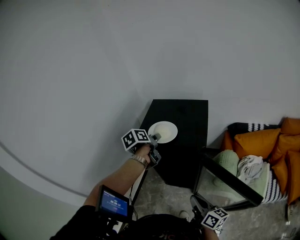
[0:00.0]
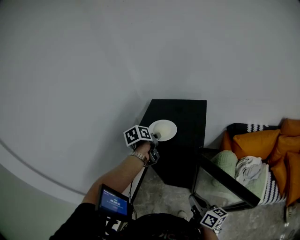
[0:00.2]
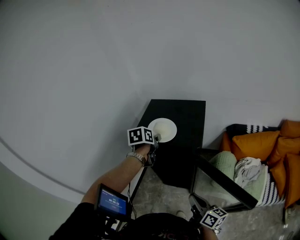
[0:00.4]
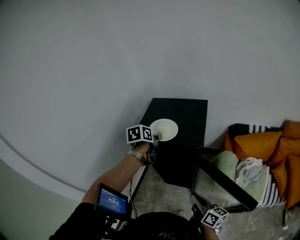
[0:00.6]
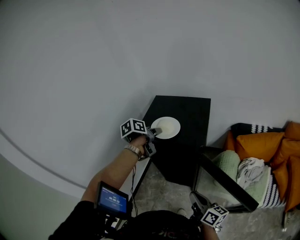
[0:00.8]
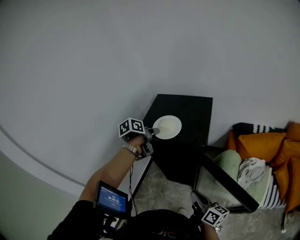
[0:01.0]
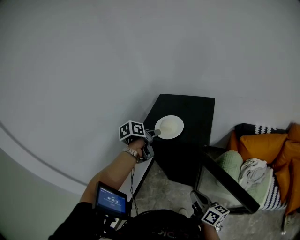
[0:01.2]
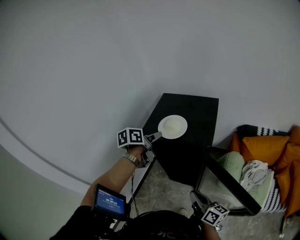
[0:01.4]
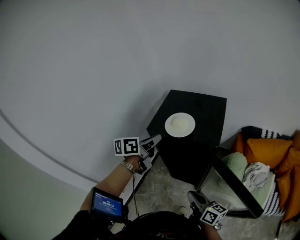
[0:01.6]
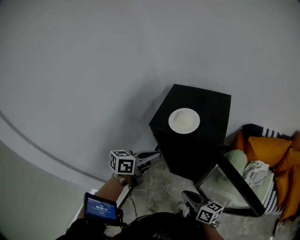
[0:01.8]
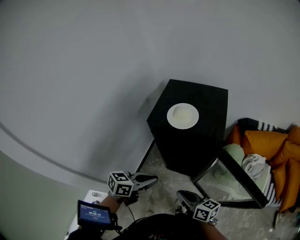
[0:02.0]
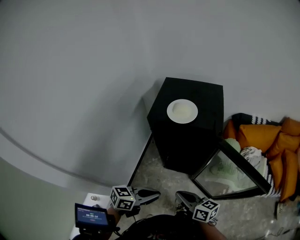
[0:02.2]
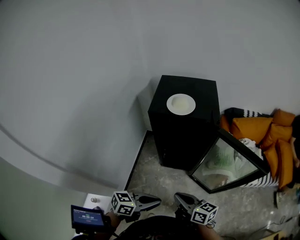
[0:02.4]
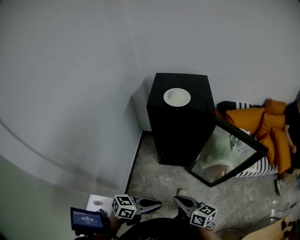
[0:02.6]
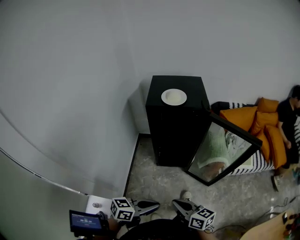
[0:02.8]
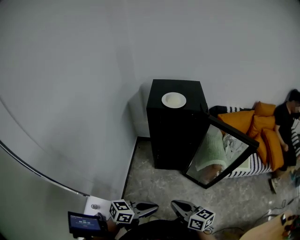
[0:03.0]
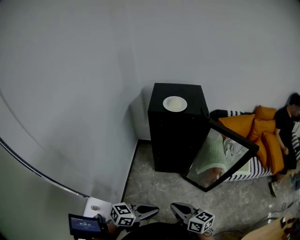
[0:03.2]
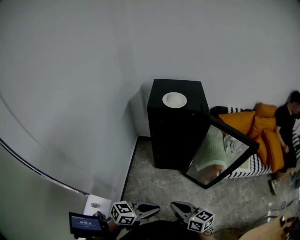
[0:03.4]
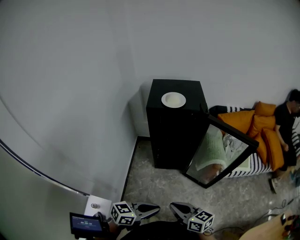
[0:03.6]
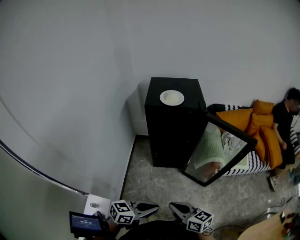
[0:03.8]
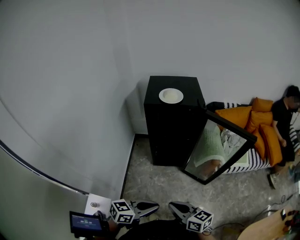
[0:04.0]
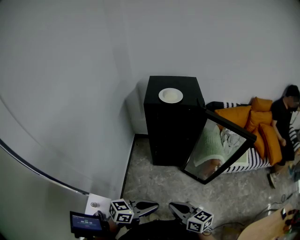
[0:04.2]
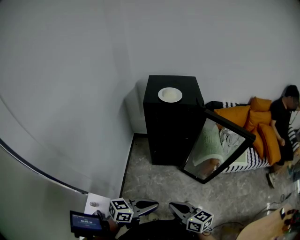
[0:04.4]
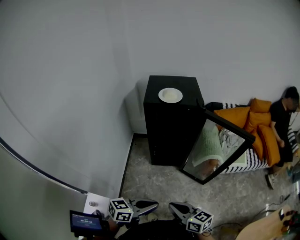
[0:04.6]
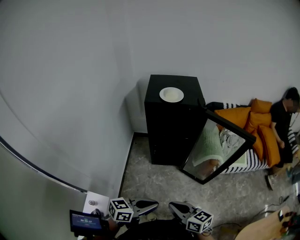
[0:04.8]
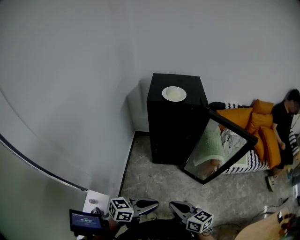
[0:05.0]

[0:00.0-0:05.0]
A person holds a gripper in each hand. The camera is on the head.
0:00.0 to 0:01.6: The left gripper shifts roughly 5 cm backward, changes its angle by some 30 degrees, and closes.
0:01.6 to 0:03.4: The right gripper shifts by approximately 30 cm, and swivels some 20 degrees, while the left gripper changes place by approximately 50 cm, and turns by roughly 50 degrees.
0:03.4 to 0:05.0: The grippers make only small movements.

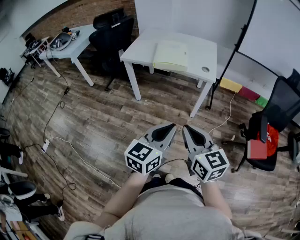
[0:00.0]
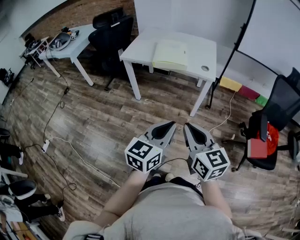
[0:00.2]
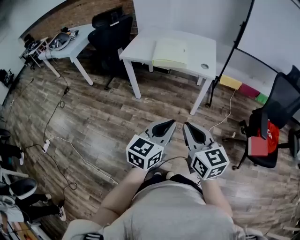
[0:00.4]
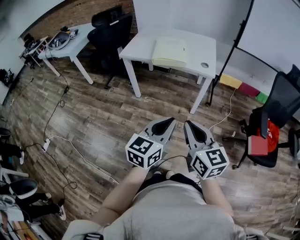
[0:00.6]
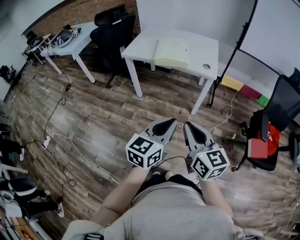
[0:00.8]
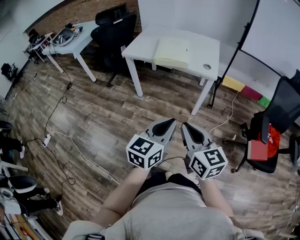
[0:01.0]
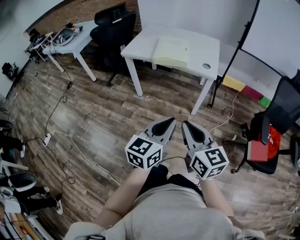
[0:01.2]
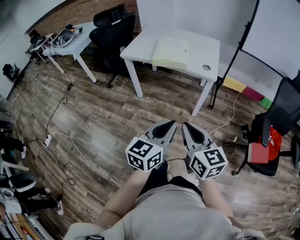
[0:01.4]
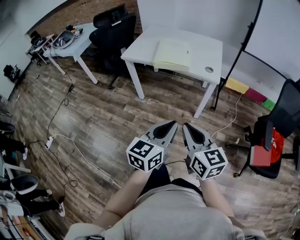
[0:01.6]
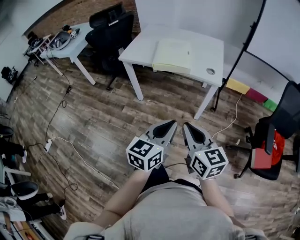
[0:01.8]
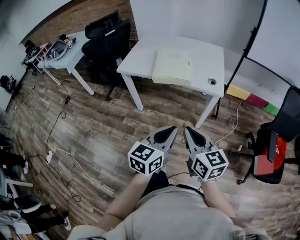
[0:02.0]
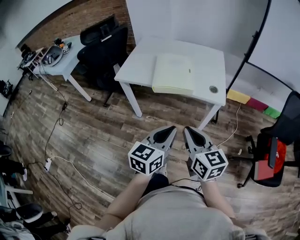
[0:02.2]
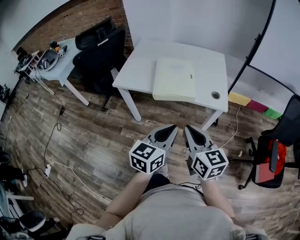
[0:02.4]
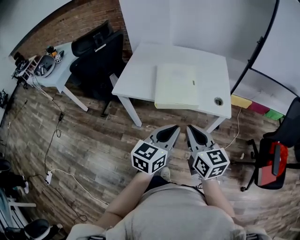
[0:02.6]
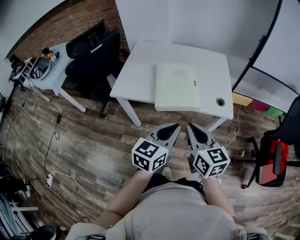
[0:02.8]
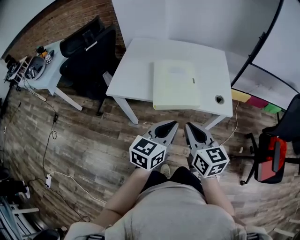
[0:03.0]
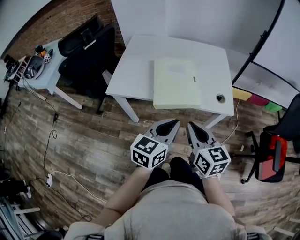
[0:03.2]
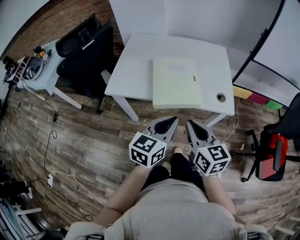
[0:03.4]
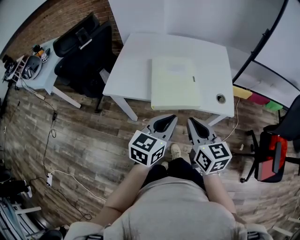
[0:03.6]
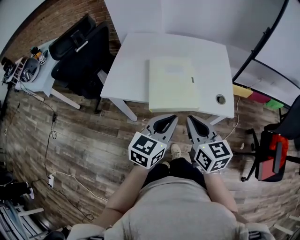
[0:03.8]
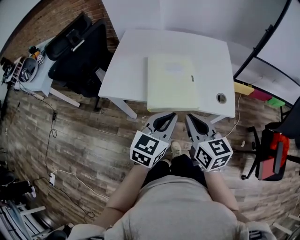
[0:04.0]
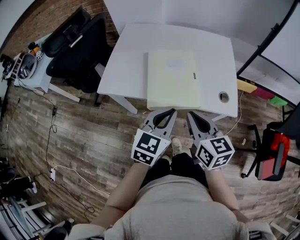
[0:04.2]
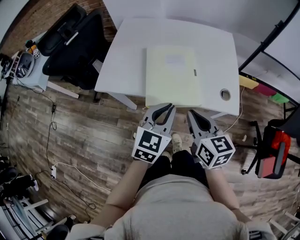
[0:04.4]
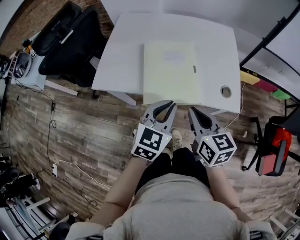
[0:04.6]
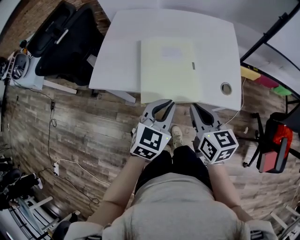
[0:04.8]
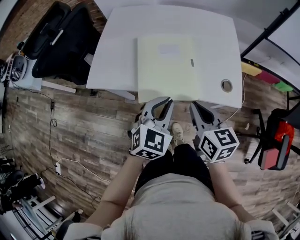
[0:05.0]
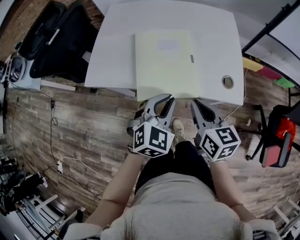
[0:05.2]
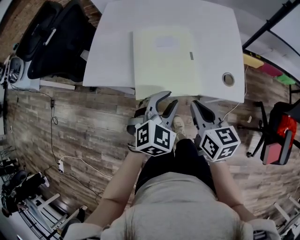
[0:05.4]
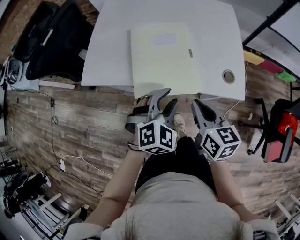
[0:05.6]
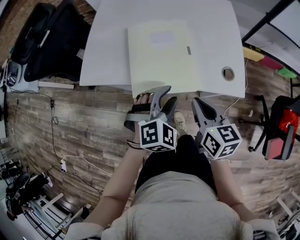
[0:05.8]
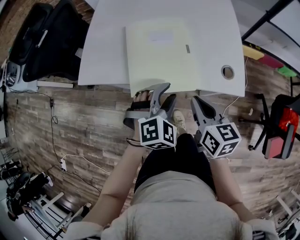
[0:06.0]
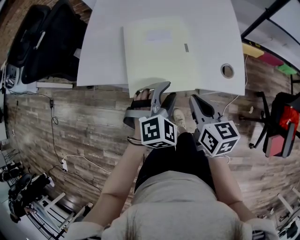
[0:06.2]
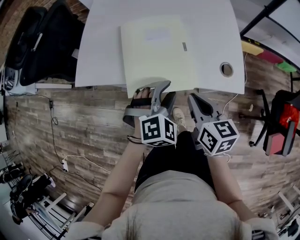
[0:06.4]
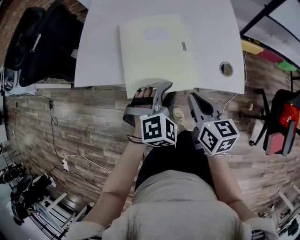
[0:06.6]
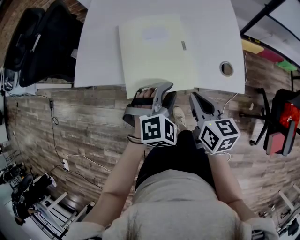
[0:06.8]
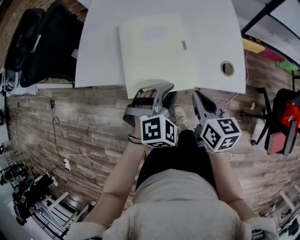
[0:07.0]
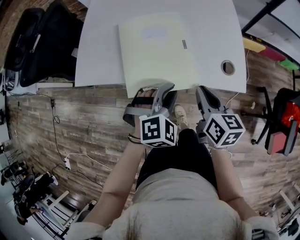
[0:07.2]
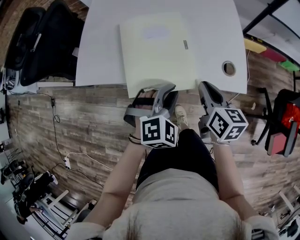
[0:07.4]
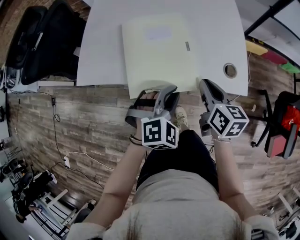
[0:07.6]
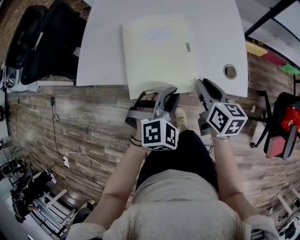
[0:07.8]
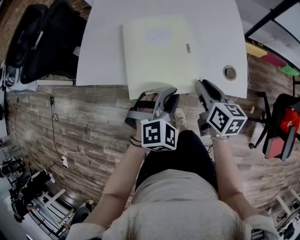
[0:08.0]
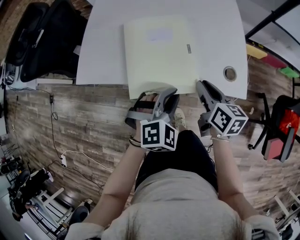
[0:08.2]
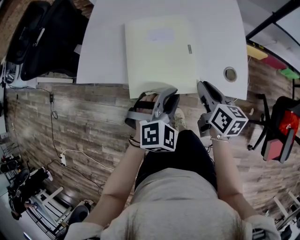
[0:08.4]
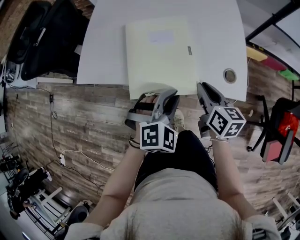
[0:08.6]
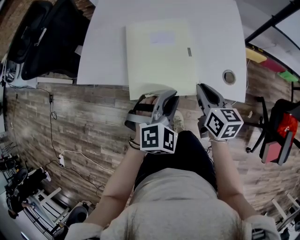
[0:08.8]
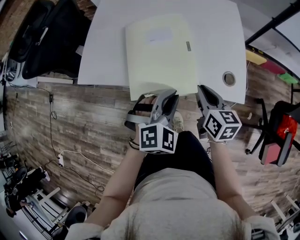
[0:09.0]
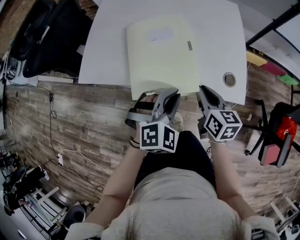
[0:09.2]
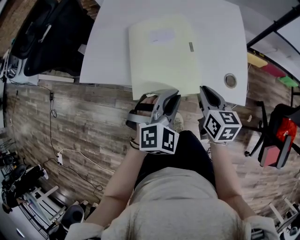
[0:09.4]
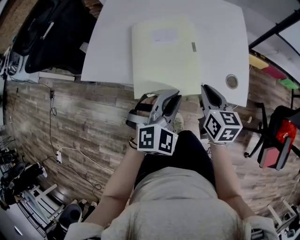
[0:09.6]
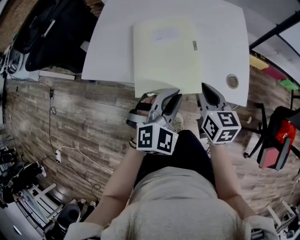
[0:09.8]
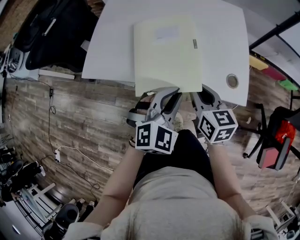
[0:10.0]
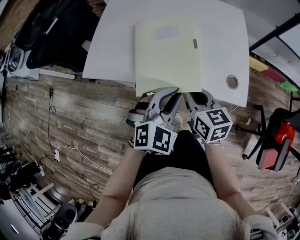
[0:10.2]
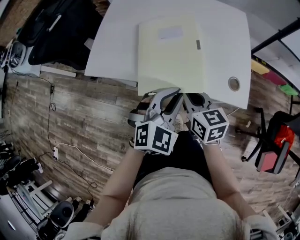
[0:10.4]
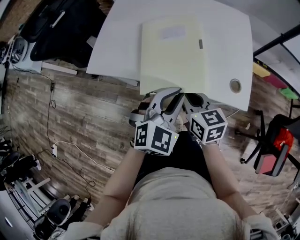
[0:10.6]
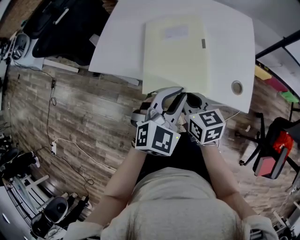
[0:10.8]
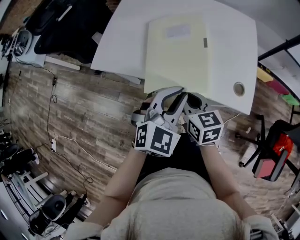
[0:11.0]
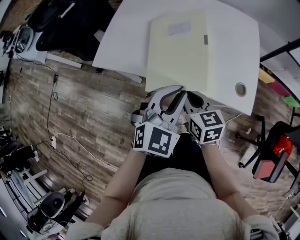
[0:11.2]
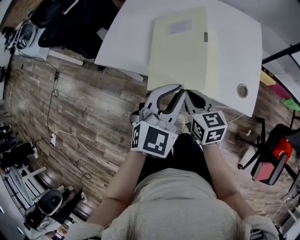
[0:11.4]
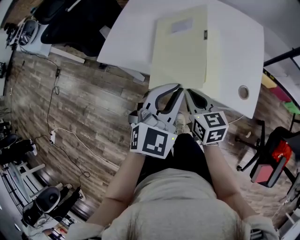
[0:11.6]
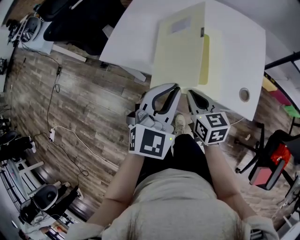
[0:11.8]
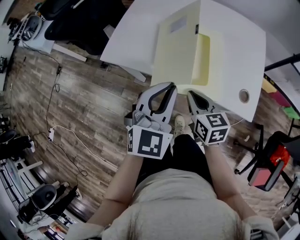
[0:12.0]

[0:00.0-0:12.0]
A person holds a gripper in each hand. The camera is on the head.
0:00.0 to 0:01.6: The two grippers go roughly 5 cm forward.
0:01.6 to 0:03.0: Both grippers travel together forward, approximately 30 cm.
0:03.0 to 0:04.4: Both grippers move forward, roughly 10 cm.
0:04.4 to 0:06.0: Both grippers move downward, approximately 10 cm. The left gripper twists about 40 degrees clockwise, seen from behind, and opens up.
0:06.0 to 0:07.6: The left gripper closes up, while the right gripper travels forward by about 5 cm.
0:07.6 to 0:09.0: The grippers stay close to where they were, moving slightly.
0:09.0 to 0:10.4: The right gripper heads to the left, covering about 10 cm.
0:10.4 to 0:12.0: The left gripper heads to the left and upward, covering some 10 cm, and rotates roughly 20 degrees.

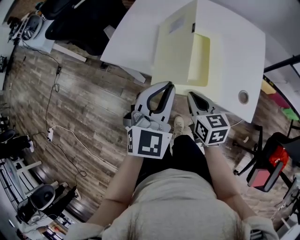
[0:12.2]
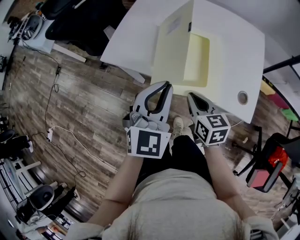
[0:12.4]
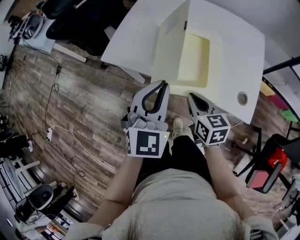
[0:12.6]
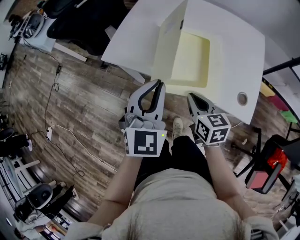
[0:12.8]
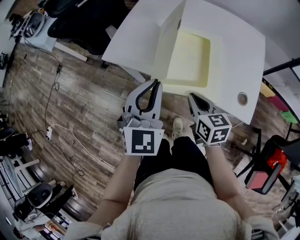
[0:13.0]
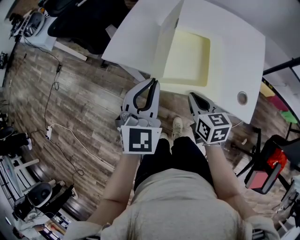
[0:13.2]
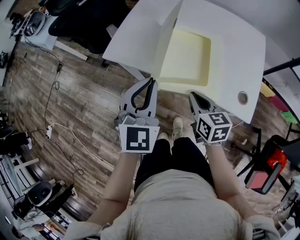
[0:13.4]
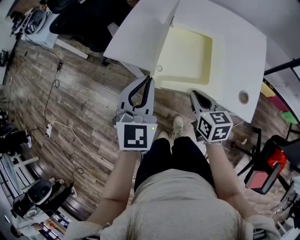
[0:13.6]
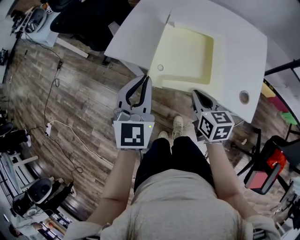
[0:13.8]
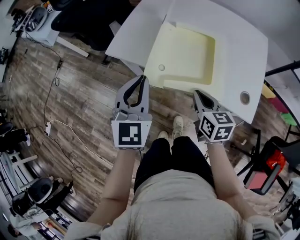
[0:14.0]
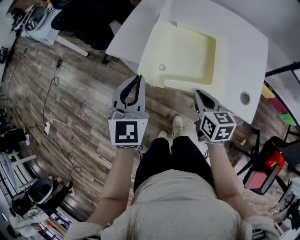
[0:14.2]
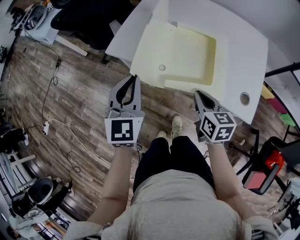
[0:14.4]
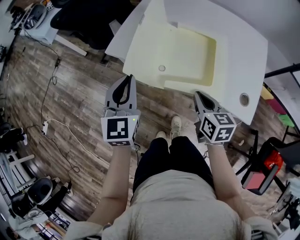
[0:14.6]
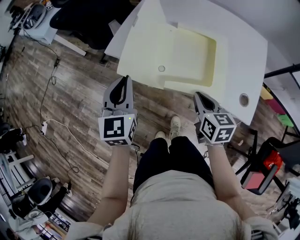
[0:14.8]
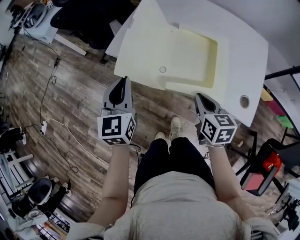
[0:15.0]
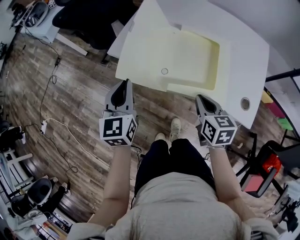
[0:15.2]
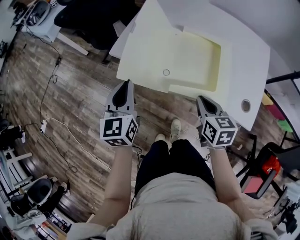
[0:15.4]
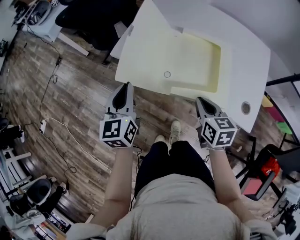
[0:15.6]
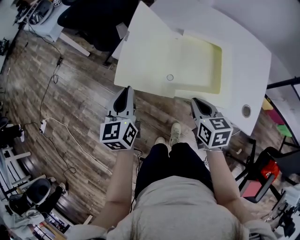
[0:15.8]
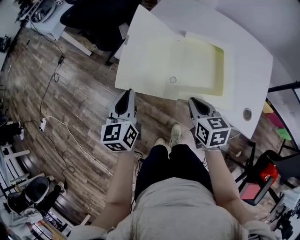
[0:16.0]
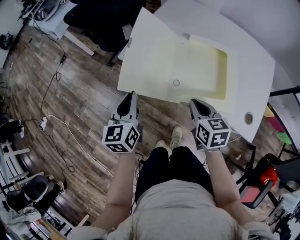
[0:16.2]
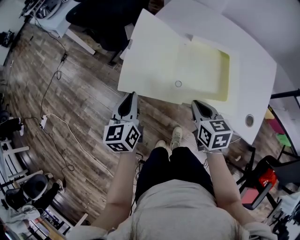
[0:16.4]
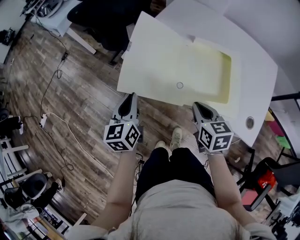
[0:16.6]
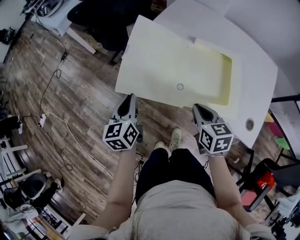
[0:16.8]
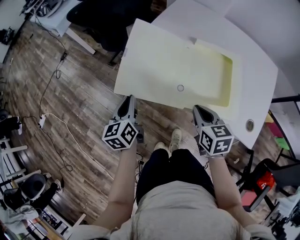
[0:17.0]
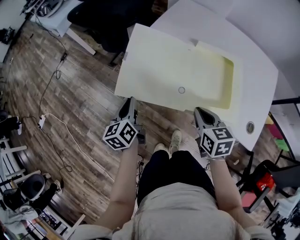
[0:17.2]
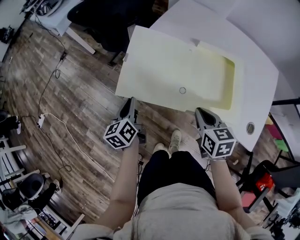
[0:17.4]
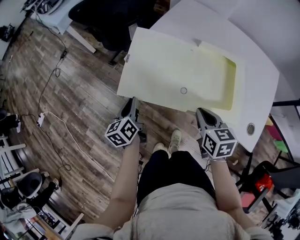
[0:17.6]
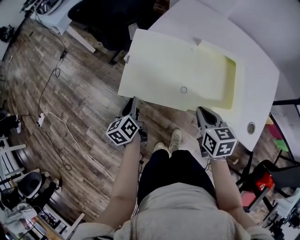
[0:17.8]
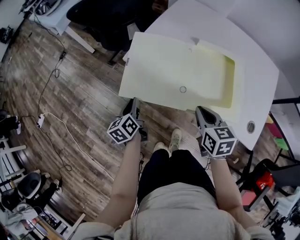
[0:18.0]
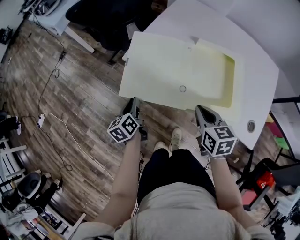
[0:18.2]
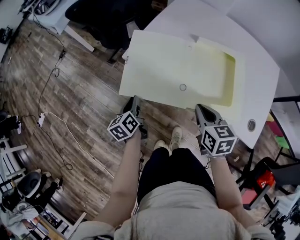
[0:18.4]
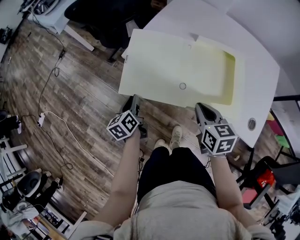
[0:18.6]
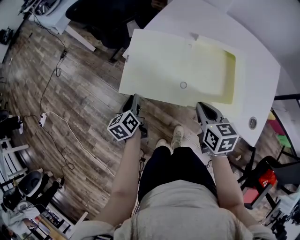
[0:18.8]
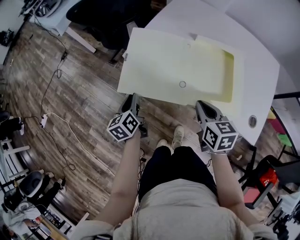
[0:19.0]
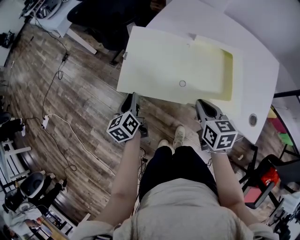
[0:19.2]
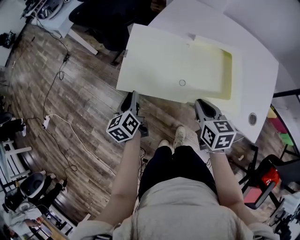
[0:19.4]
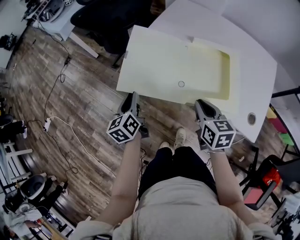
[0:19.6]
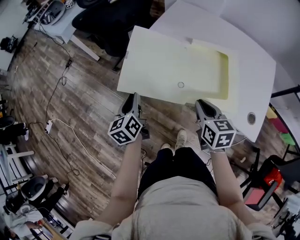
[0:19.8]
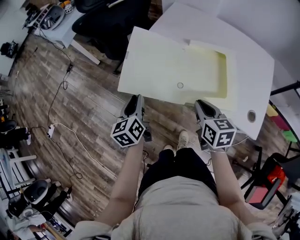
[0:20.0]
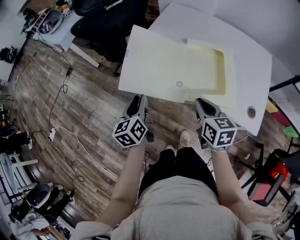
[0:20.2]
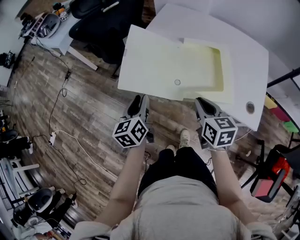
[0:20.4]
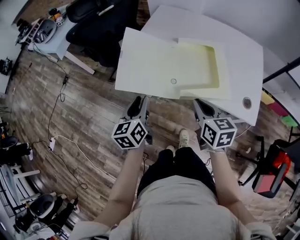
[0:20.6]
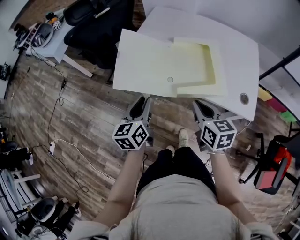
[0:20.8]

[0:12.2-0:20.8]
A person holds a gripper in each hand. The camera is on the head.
0:12.2 to 0:13.6: The left gripper is displaced to the left by approximately 5 cm.
0:13.6 to 0:15.0: The left gripper goes about 10 cm to the left, and rotates about 20 degrees.
0:15.0 to 0:16.6: The right gripper moves to the left, approximately 5 cm, while the left gripper heads downward and to the left, covering approximately 10 cm, and rotates roughly 20 degrees.
0:16.6 to 0:18.0: The left gripper travels downward by roughly 10 cm, and swivels about 20 degrees.
0:18.0 to 0:19.4: The left gripper moves upward, about 5 cm.
0:19.4 to 0:20.8: The left gripper shifts approximately 15 cm to the right, upward and backward, and swivels about 30 degrees; the right gripper is displaced backward by about 5 cm.
